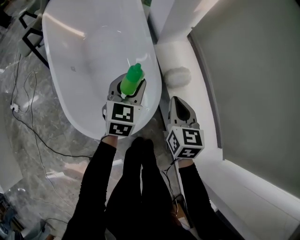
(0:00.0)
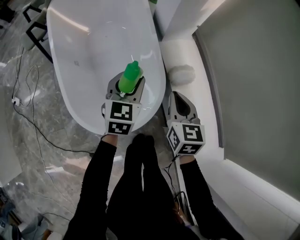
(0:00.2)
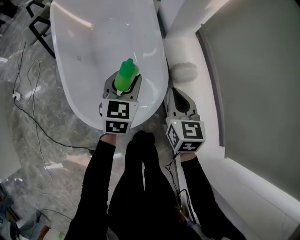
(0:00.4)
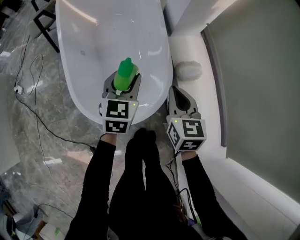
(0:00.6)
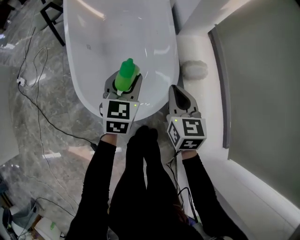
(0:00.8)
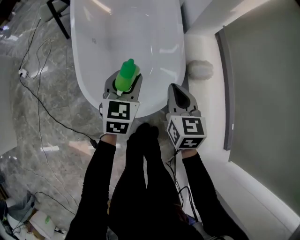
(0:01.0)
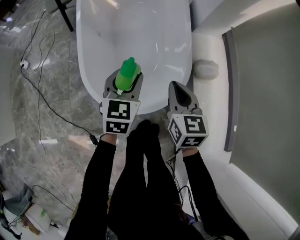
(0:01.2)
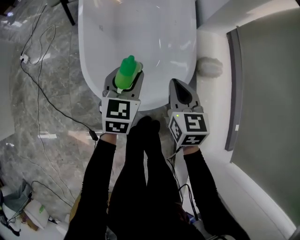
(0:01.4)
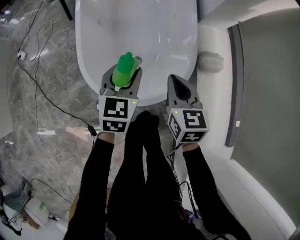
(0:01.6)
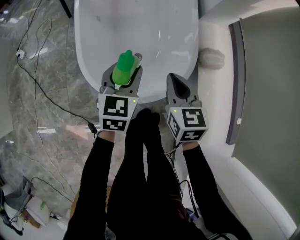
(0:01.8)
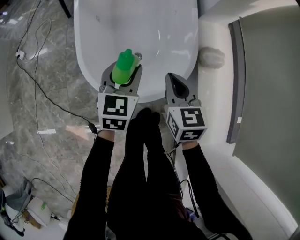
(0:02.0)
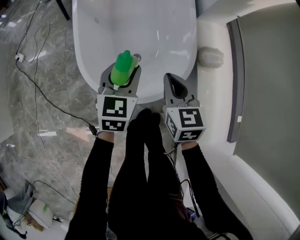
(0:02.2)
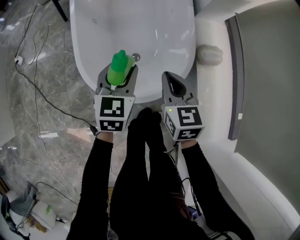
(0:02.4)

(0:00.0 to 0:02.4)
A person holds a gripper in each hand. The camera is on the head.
0:00.0 - 0:01.2: The left gripper is displaced to the left and backward by approximately 15 cm. Meanwhile the right gripper moves to the left, approximately 10 cm.
0:01.2 - 0:02.4: The grippers stay close to where they were, moving slightly.

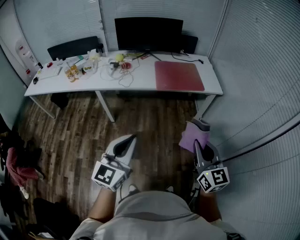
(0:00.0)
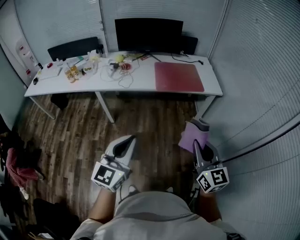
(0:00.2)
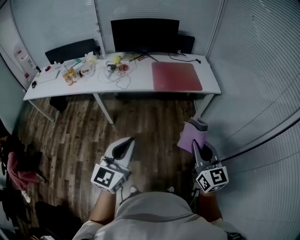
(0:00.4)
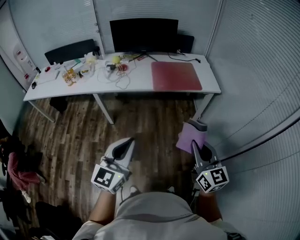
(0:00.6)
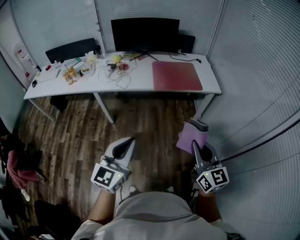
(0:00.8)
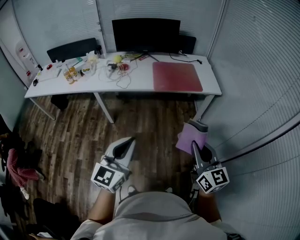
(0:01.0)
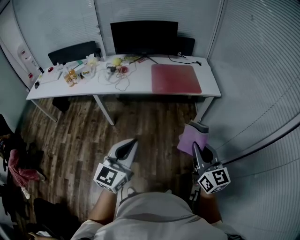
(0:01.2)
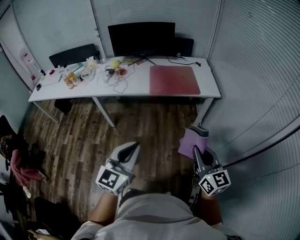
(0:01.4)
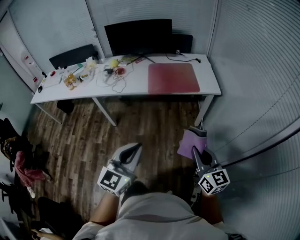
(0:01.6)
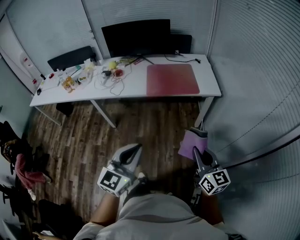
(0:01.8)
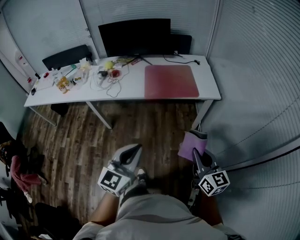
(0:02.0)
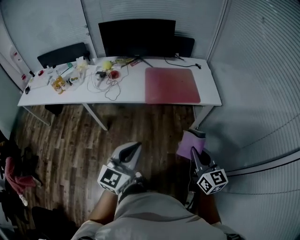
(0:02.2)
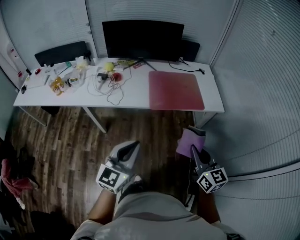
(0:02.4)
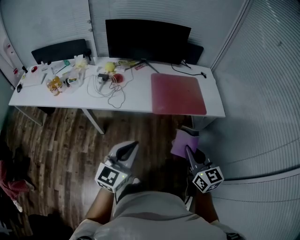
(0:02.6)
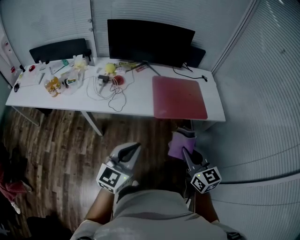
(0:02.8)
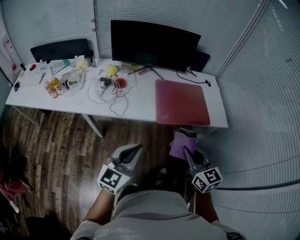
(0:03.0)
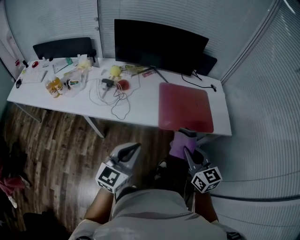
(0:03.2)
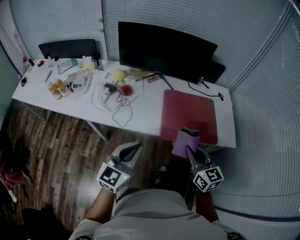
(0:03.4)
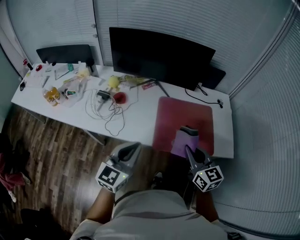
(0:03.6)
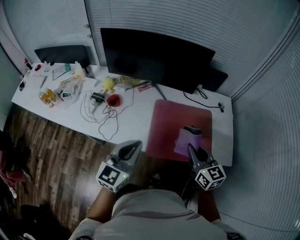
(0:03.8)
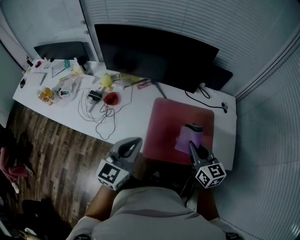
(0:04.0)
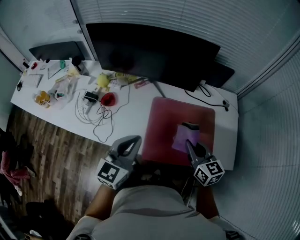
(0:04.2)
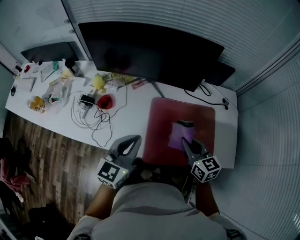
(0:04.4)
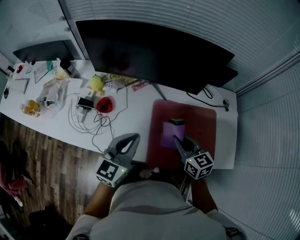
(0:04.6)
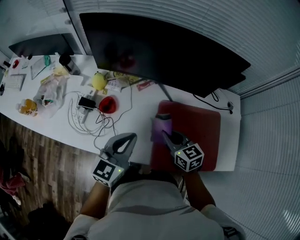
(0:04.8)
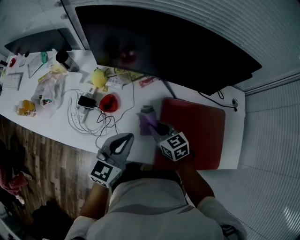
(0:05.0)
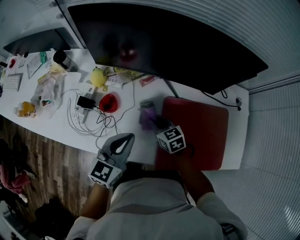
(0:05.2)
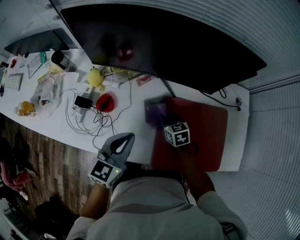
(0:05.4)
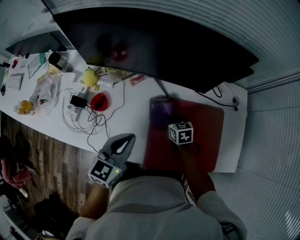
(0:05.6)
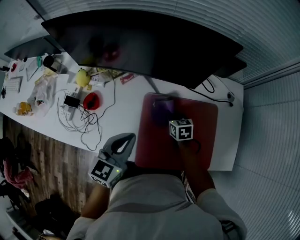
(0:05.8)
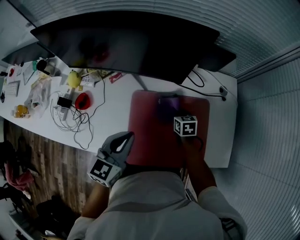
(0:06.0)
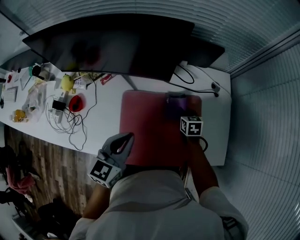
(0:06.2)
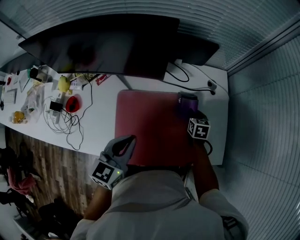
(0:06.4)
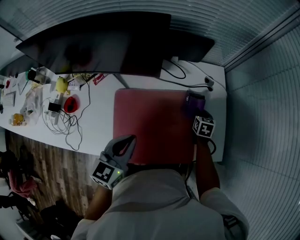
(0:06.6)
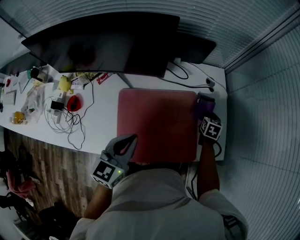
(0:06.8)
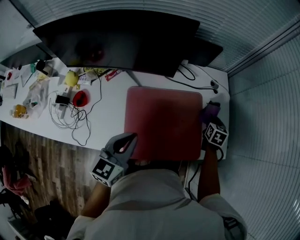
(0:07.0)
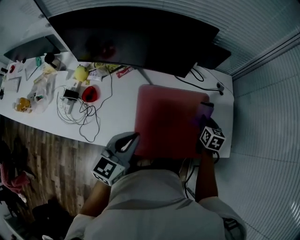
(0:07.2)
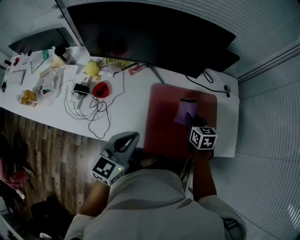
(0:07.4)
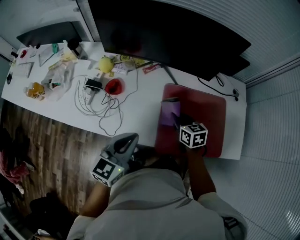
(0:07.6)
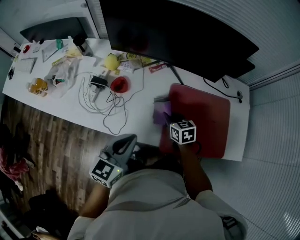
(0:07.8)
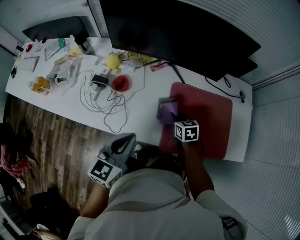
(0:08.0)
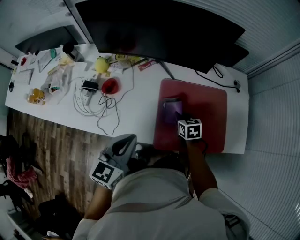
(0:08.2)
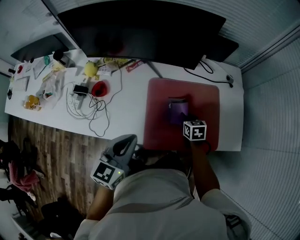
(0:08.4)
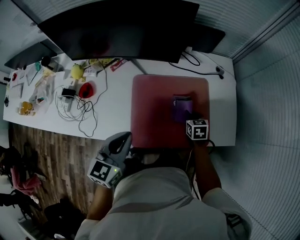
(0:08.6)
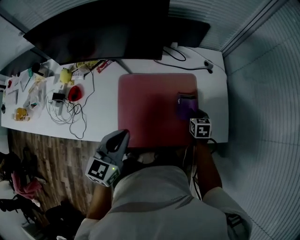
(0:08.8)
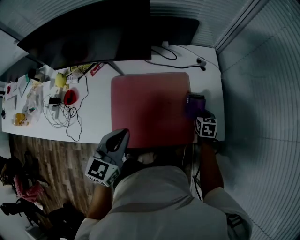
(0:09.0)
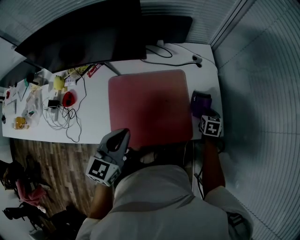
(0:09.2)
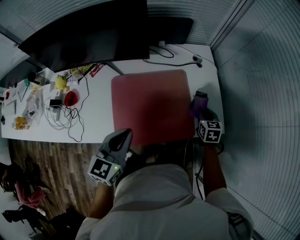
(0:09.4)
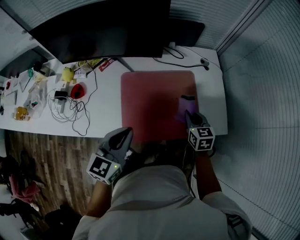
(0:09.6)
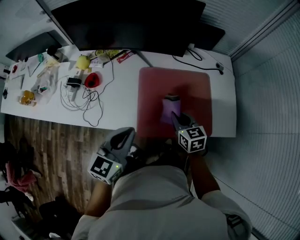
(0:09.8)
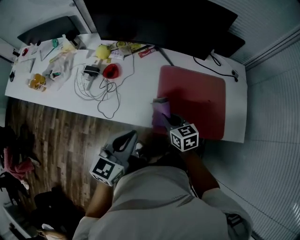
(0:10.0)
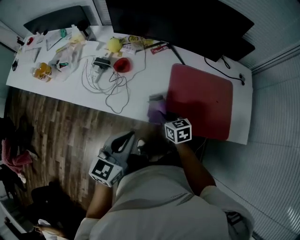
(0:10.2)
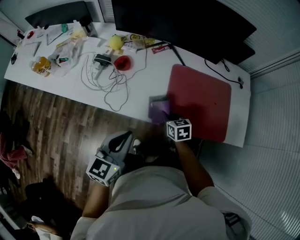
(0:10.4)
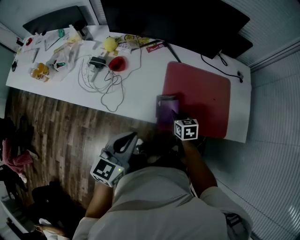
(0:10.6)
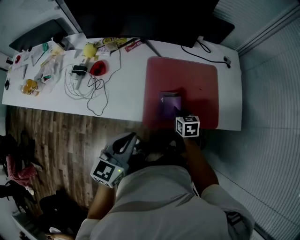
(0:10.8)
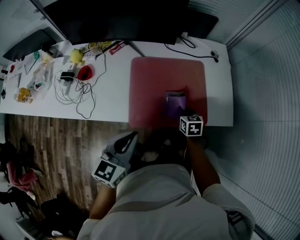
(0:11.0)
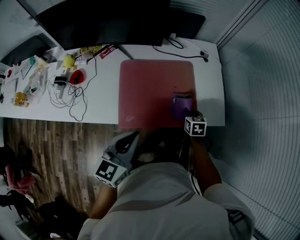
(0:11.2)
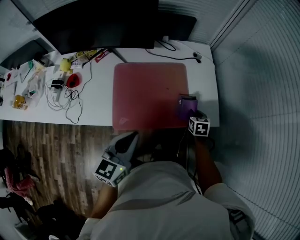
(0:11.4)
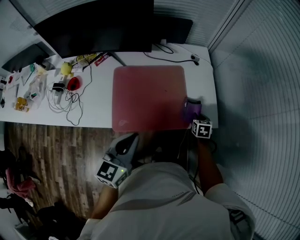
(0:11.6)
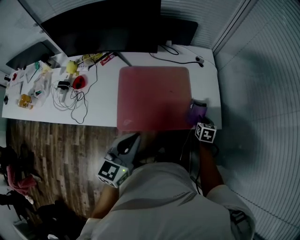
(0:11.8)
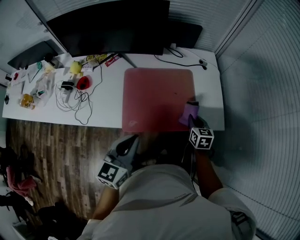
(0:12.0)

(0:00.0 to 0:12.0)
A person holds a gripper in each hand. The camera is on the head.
0:00.0 - 0:01.6: The left gripper travels to the right by about 15 cm, while the right gripper moves to the right and downward, about 15 cm.
0:01.6 - 0:03.0: The grippers both shift forward and to the left by about 40 cm.
0:03.0 - 0:04.4: The pair of grippers is taken forward, about 40 cm.
0:04.4 - 0:06.0: The right gripper travels downward and forward by roughly 30 cm, goes to the left and returns, some 25 cm each way, and changes its angle by approximately 30 degrees. The left gripper heads forward, to the right and downward, covering some 15 cm.
0:06.0 - 0:07.6: The left gripper changes place by about 20 cm, while the right gripper ends up about 25 cm from where it was.
0:07.6 - 0:09.0: The right gripper ends up roughly 50 cm from where it was, and turns by about 40 degrees. Meanwhile the left gripper shifts by approximately 25 cm.
0:09.0 - 0:10.4: The right gripper reaches about 15 cm upward, then returns, and swivels approximately 30 degrees; the left gripper moves some 35 cm.
0:10.4 - 0:12.0: The left gripper moves about 25 cm; the right gripper ends up about 40 cm from where it was, and changes its angle by some 30 degrees.

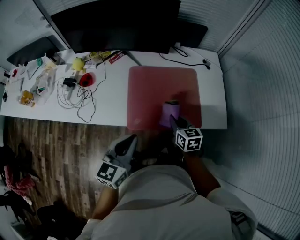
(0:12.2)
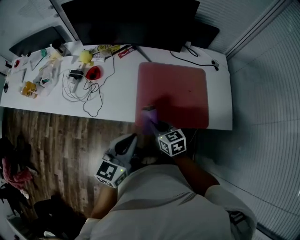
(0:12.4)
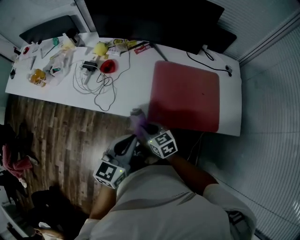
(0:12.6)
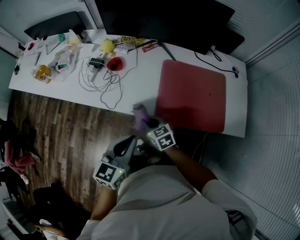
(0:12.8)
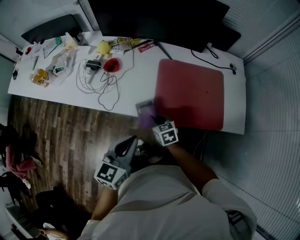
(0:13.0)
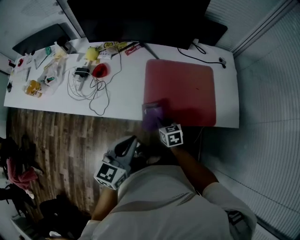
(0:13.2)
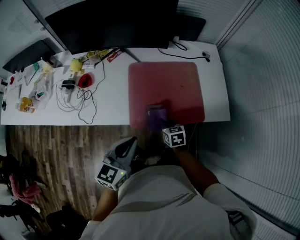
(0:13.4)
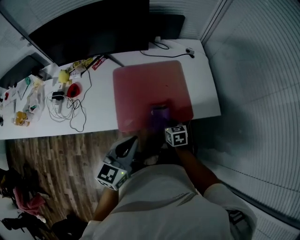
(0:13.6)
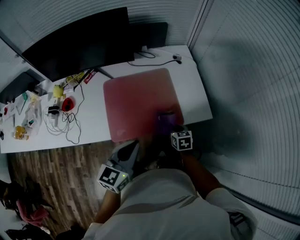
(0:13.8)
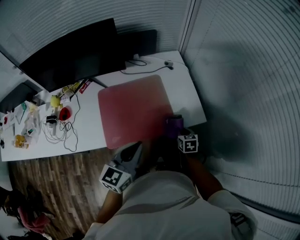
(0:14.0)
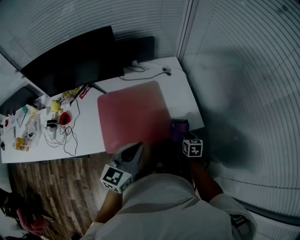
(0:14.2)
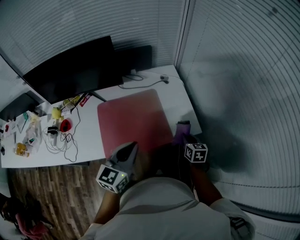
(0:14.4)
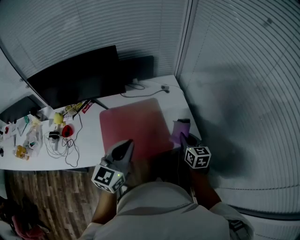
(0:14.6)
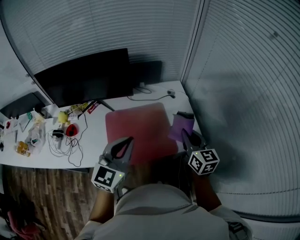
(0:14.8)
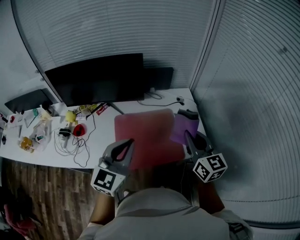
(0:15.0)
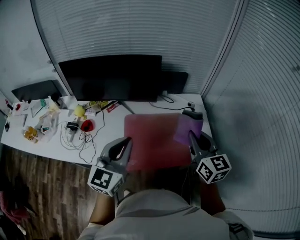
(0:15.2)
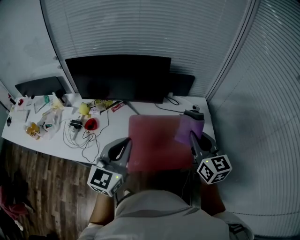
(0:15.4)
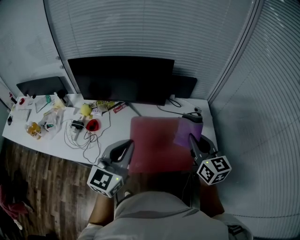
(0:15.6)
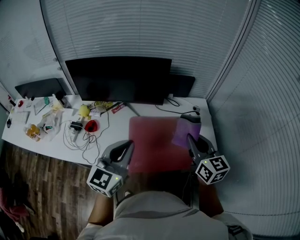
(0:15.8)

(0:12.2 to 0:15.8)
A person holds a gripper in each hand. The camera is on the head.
0:12.2 - 0:14.0: The left gripper changes place by roughly 15 cm. The right gripper shifts by about 25 cm, and rotates approximately 20 degrees.
0:14.0 - 0:15.8: The left gripper shifts approximately 25 cm to the left and upward, and changes its angle by approximately 20 degrees. The right gripper is displaced upward and to the left by about 40 cm, and tilts its fingers some 40 degrees upward.

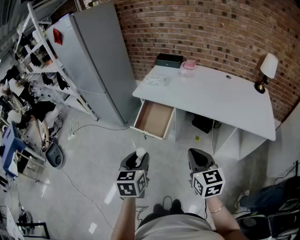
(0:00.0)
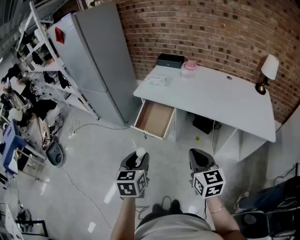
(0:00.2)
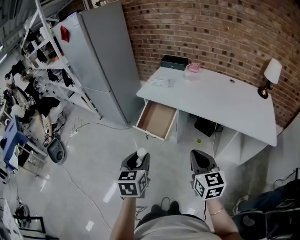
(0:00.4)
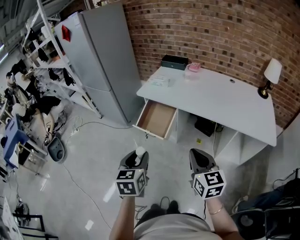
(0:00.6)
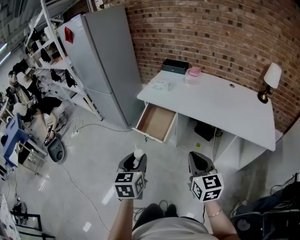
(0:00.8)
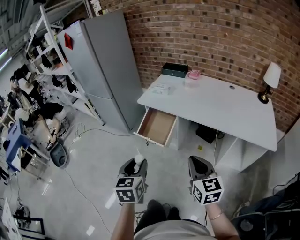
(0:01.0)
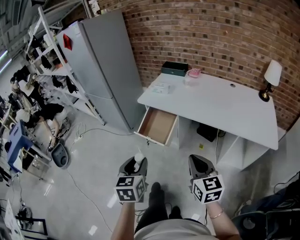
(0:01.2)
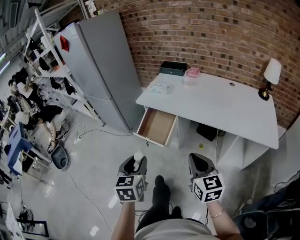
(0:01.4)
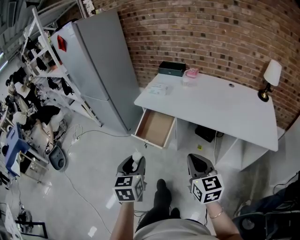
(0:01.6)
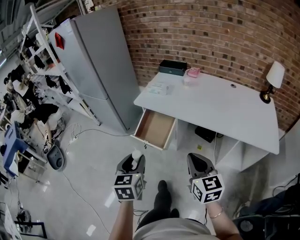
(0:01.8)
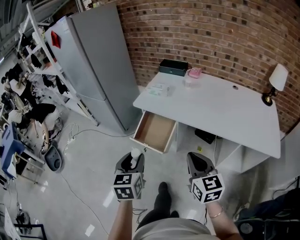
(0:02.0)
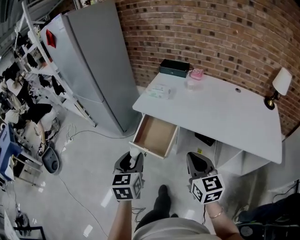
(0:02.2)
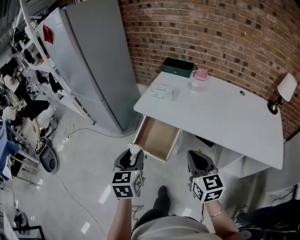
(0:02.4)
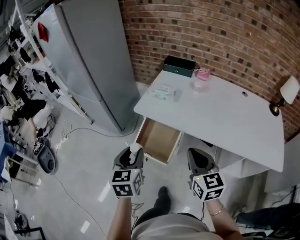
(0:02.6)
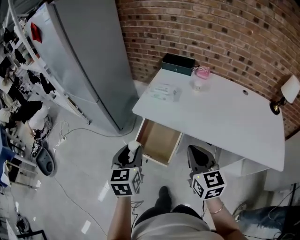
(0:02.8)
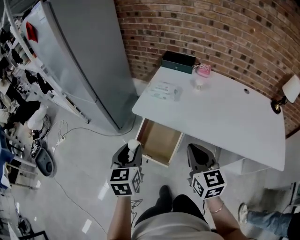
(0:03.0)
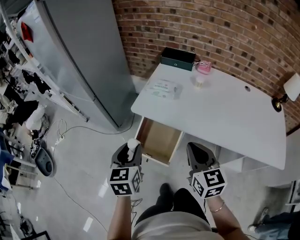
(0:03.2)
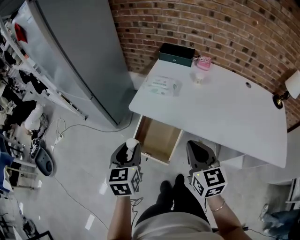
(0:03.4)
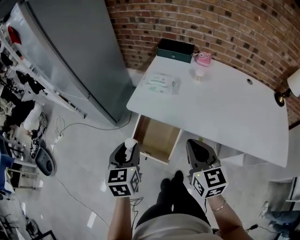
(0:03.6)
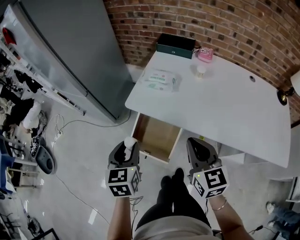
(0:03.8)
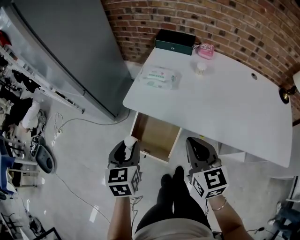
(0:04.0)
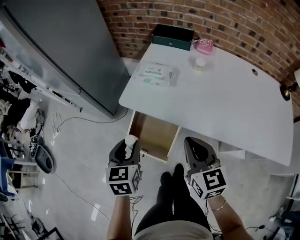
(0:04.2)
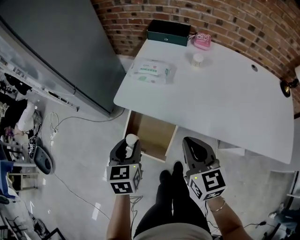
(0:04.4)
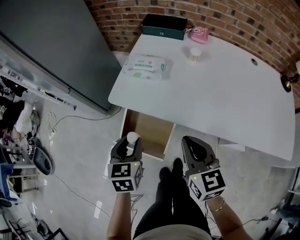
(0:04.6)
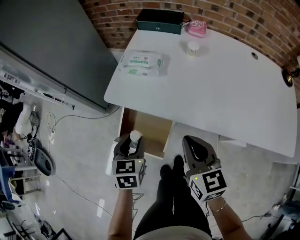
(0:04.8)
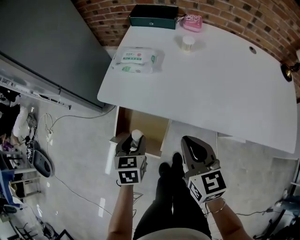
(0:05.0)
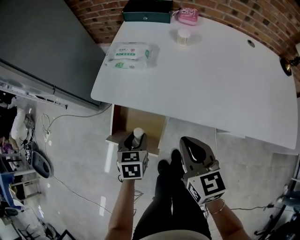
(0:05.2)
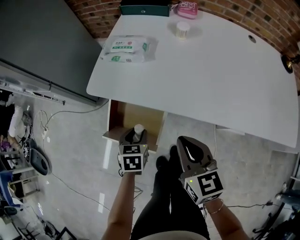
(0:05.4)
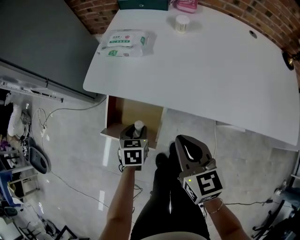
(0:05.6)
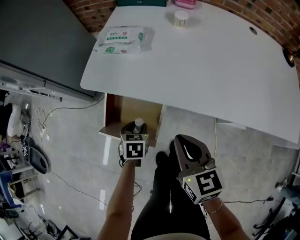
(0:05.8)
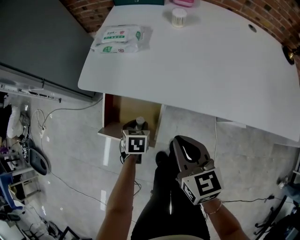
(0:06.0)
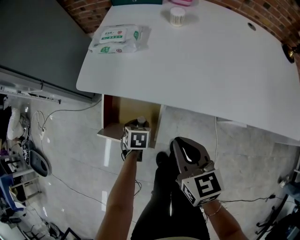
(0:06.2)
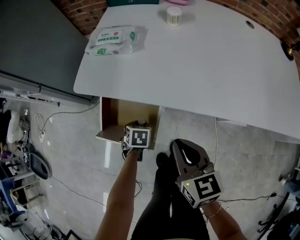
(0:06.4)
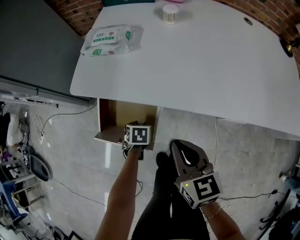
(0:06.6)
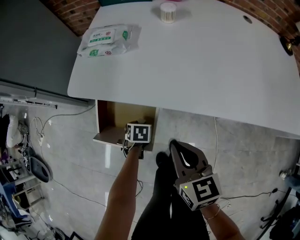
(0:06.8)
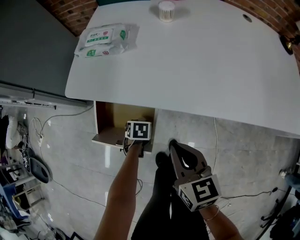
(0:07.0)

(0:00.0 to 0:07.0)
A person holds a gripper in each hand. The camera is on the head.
0:00.0 - 0:01.4: The grippers make only small movements.
0:01.4 - 0:02.8: Both grippers move forward, some 35 cm.
0:02.8 - 0:04.2: The two grippers go some 15 cm forward and downward.
0:04.2 - 0:05.6: The right gripper is displaced downward by about 15 cm, while the left gripper travels downward by some 25 cm, and rotates about 20 degrees.
0:05.6 - 0:07.0: The right gripper heads downward, covering some 5 cm. Meanwhile the left gripper shifts approximately 15 cm downward, and changes its angle by about 20 degrees.
